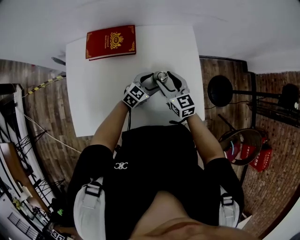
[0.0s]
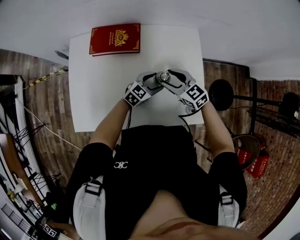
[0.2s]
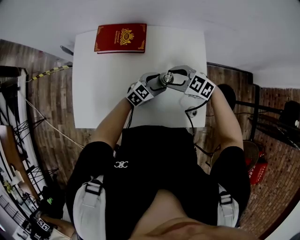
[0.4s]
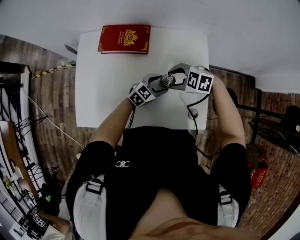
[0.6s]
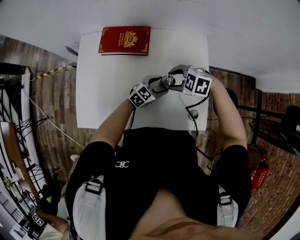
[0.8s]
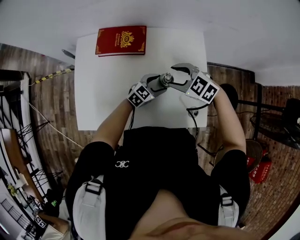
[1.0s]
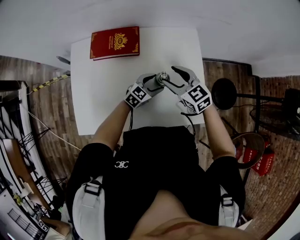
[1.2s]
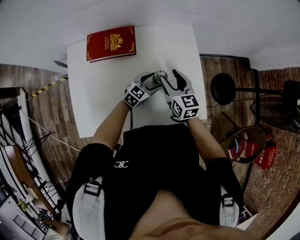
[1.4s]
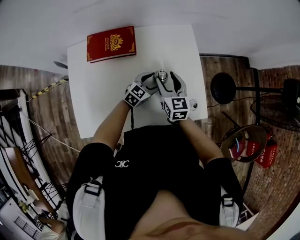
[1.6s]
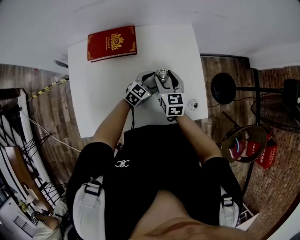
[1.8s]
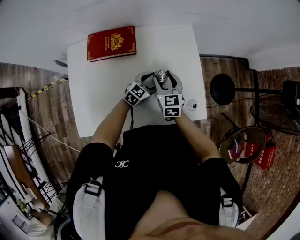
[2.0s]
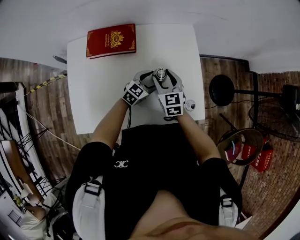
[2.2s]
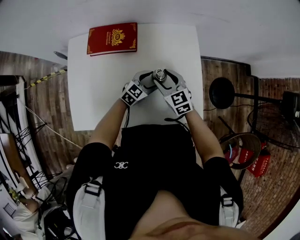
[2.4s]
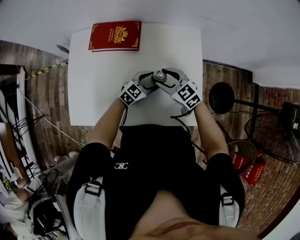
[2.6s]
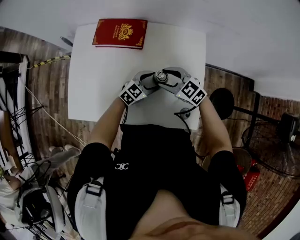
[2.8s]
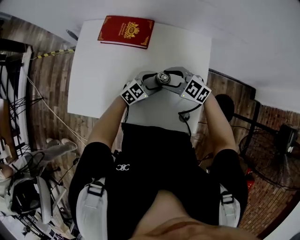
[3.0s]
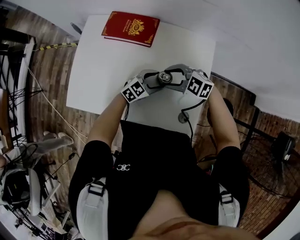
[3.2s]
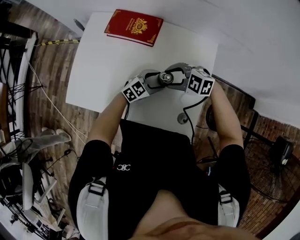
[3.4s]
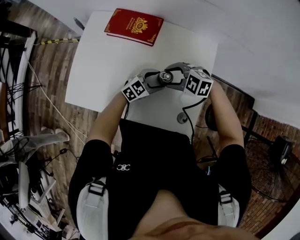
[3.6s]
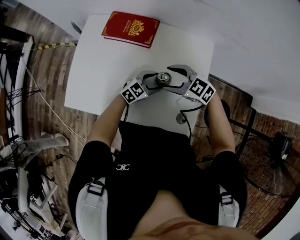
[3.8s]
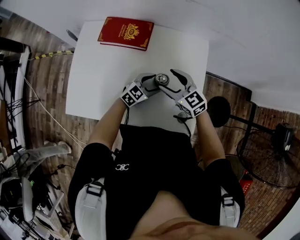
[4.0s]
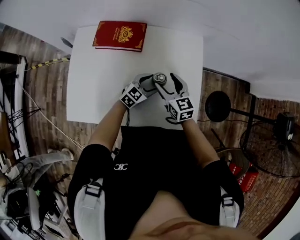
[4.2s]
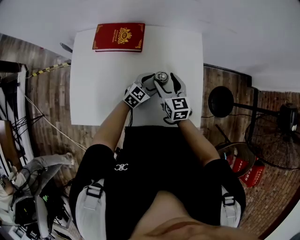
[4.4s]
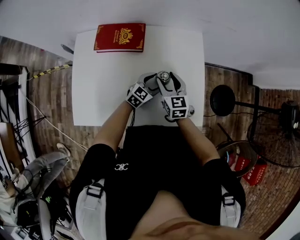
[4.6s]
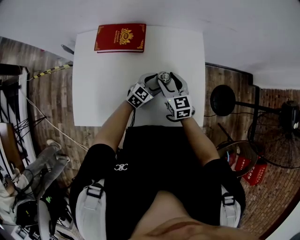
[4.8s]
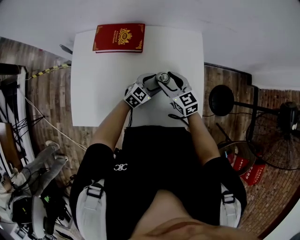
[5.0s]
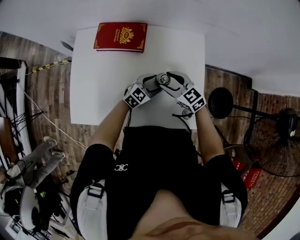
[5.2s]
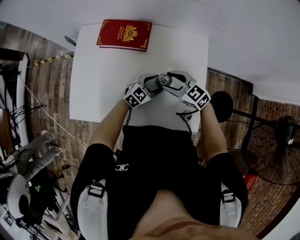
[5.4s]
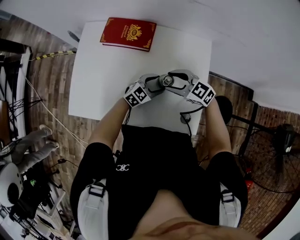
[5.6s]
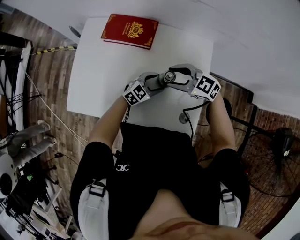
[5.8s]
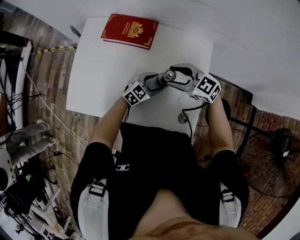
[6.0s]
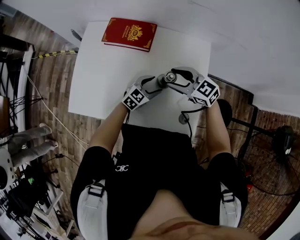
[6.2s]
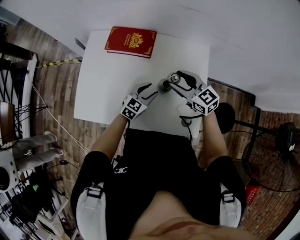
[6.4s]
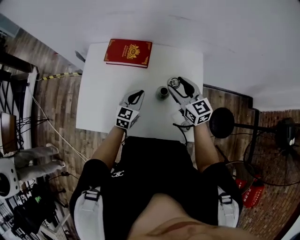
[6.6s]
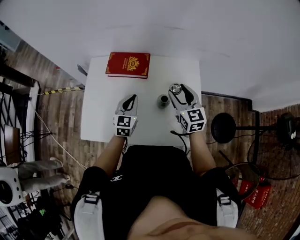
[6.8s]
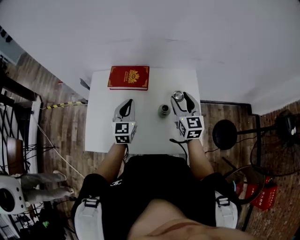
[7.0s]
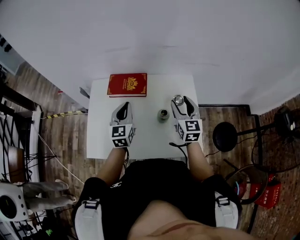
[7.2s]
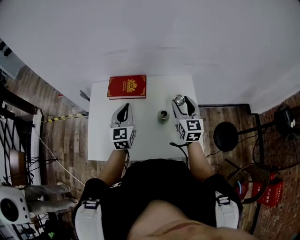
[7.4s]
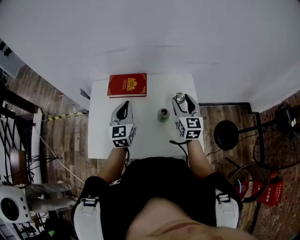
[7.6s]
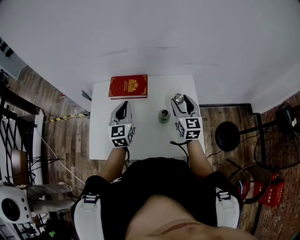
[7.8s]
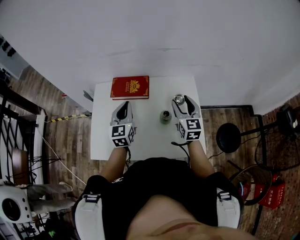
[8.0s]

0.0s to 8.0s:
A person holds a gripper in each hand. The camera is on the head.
1.6s to 3.2s: The right gripper turns by some 90 degrees.
3.2s to 4.8s: The right gripper swivels about 70 degrees.
4.8s to 6.4s: The left gripper moves about 5 cm. Meanwhile the right gripper travels upward by some 10 cm, and rotates approximately 30 degrees.
6.4s to 8.0s: The right gripper moves upward, approximately 10 cm, and changes its angle by about 50 degrees, while the left gripper moves upward and to the left, approximately 25 cm, swivels roughly 40 degrees, and closes.

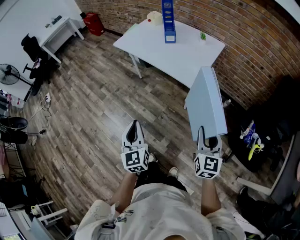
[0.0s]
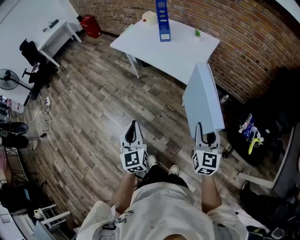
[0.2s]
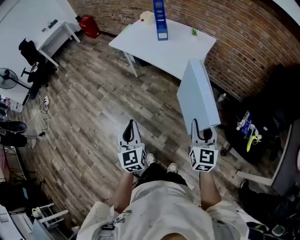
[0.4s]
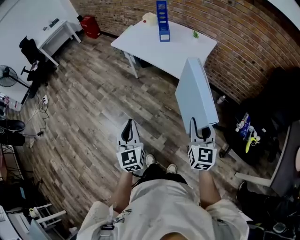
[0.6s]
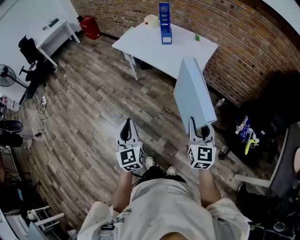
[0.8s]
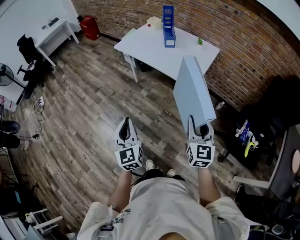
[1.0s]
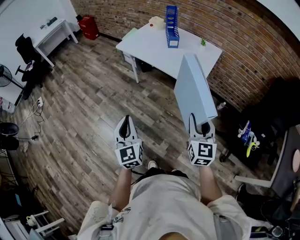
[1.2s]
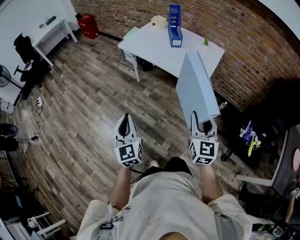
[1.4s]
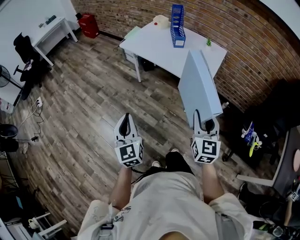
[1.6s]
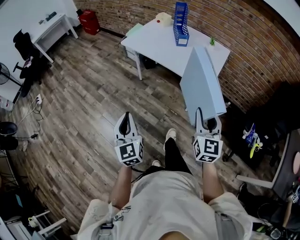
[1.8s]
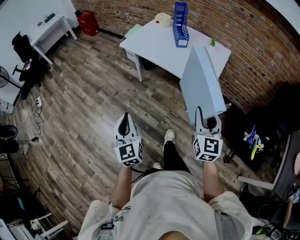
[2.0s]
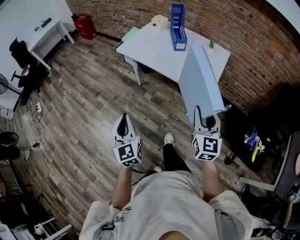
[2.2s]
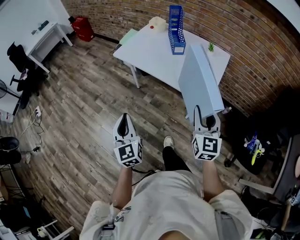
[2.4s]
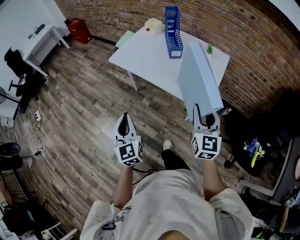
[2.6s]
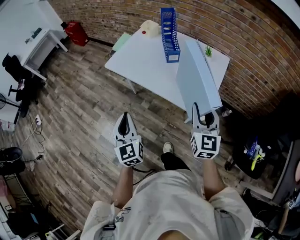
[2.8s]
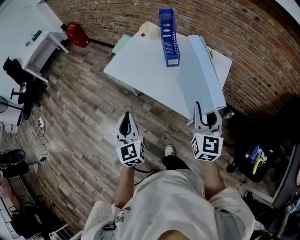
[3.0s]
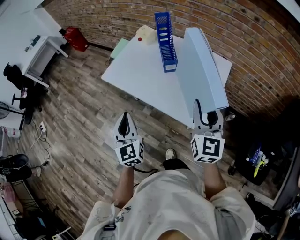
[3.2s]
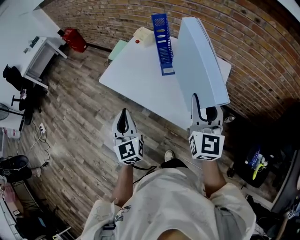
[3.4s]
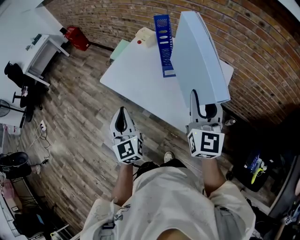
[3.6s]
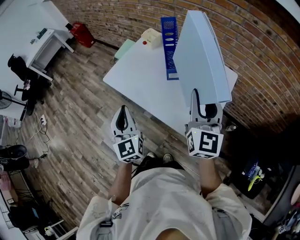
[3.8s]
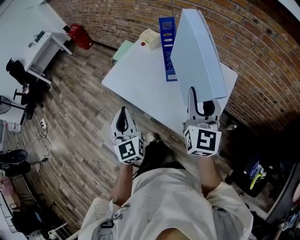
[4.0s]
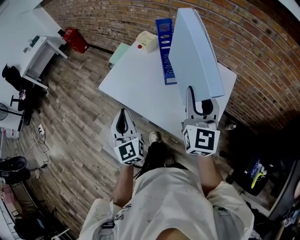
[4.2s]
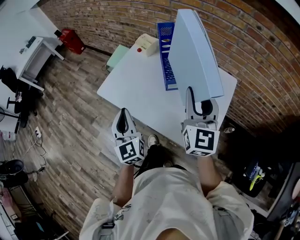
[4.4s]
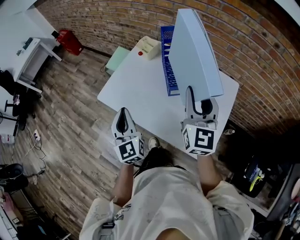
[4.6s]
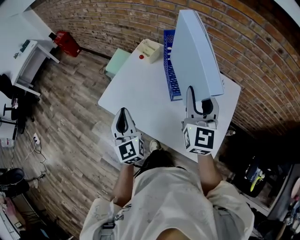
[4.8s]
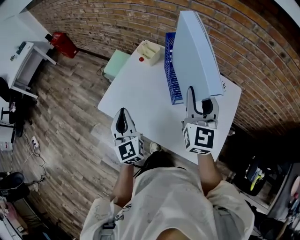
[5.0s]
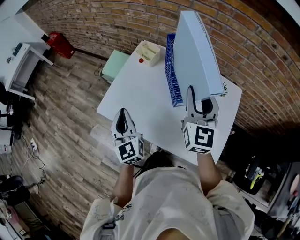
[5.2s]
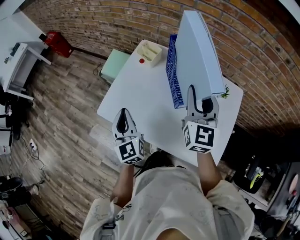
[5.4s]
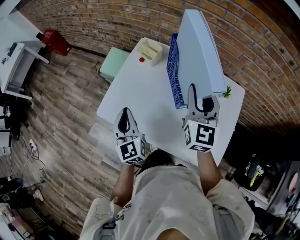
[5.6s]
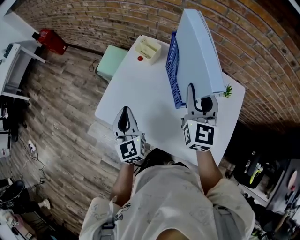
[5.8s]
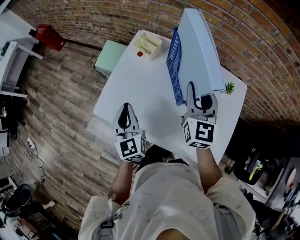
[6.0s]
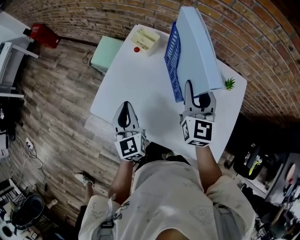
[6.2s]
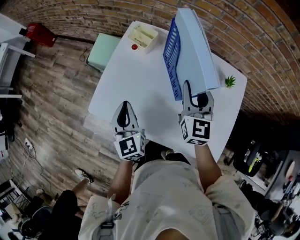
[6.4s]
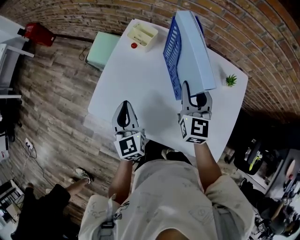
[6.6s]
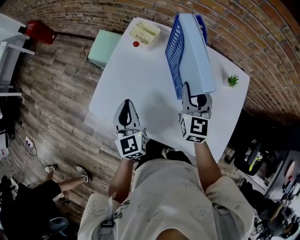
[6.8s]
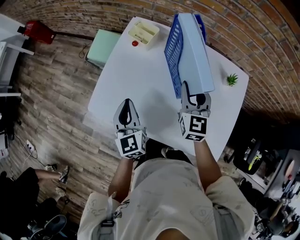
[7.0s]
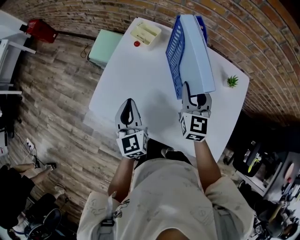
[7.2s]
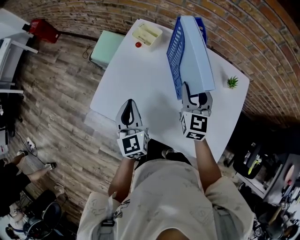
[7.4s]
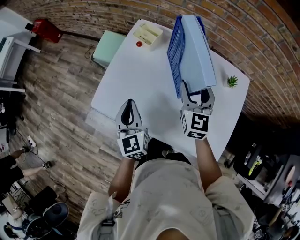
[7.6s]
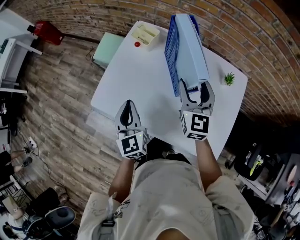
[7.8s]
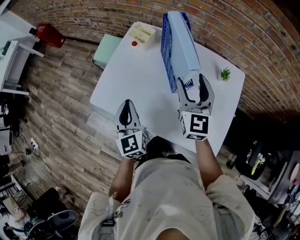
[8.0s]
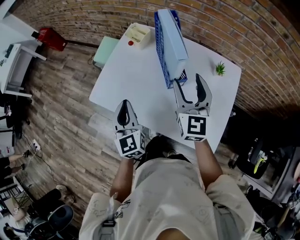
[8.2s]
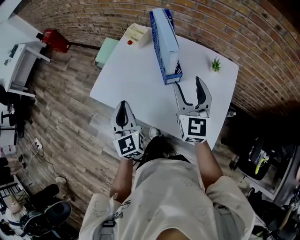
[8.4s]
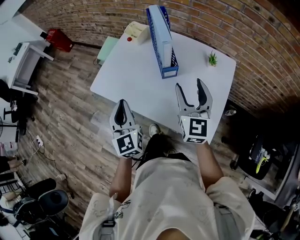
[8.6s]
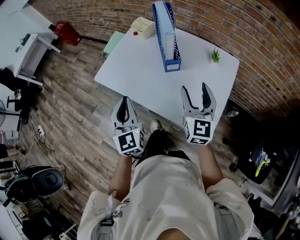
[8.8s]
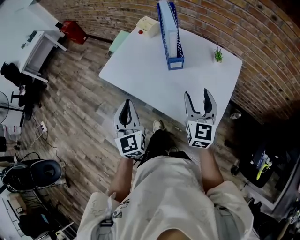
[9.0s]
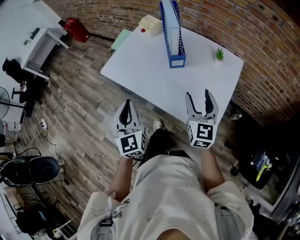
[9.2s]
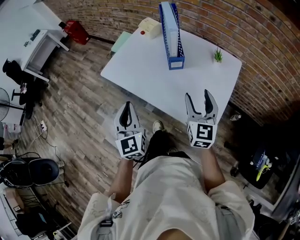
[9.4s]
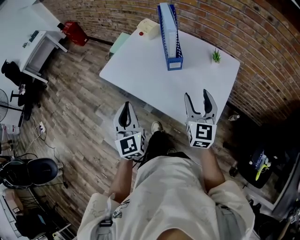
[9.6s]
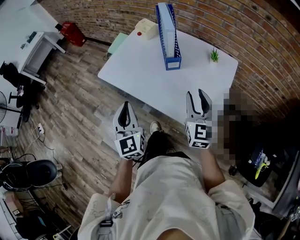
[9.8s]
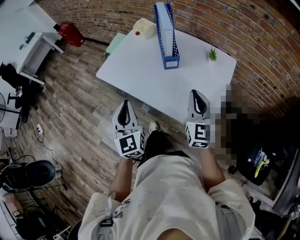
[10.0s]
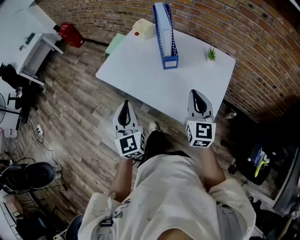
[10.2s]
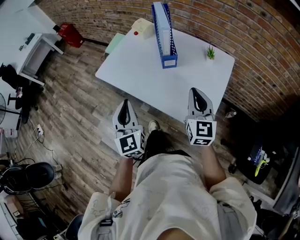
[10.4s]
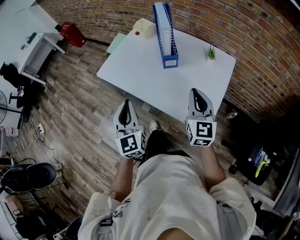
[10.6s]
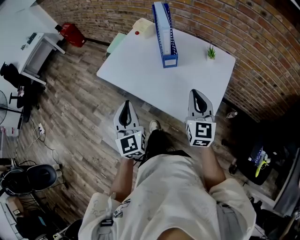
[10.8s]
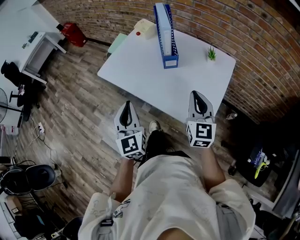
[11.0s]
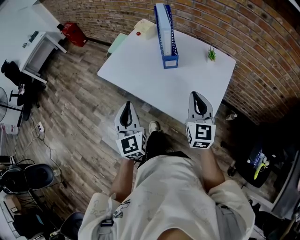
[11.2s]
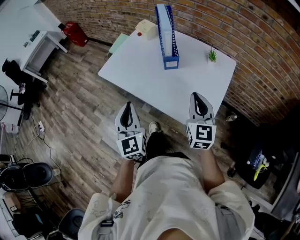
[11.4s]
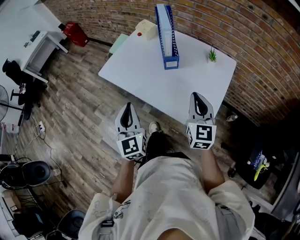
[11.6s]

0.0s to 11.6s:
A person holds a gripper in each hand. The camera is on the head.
0.0s to 1.4s: The left gripper goes some 15 cm to the left; the right gripper moves to the left and forward, approximately 15 cm.
1.4s to 2.8s: The two grippers go some 25 cm forward.
2.8s to 4.4s: Both grippers travel together forward, roughly 20 cm.
4.4s to 5.8s: Both grippers travel together forward, some 15 cm.
5.8s to 7.2s: The right gripper shifts approximately 10 cm downward.
7.2s to 8.8s: The right gripper goes approximately 20 cm backward, and opens. Meanwhile the left gripper is displaced backward and upward by roughly 20 cm.
8.8s to 10.2s: Both grippers move backward, approximately 5 cm. The right gripper closes its fingers.
10.2s to 11.6s: The grippers move only a little.

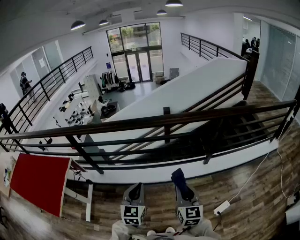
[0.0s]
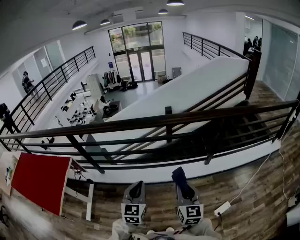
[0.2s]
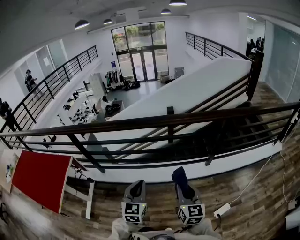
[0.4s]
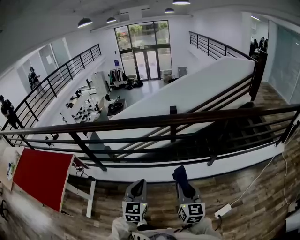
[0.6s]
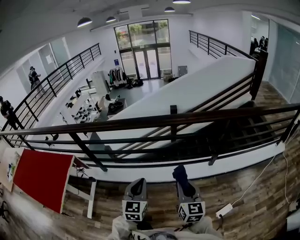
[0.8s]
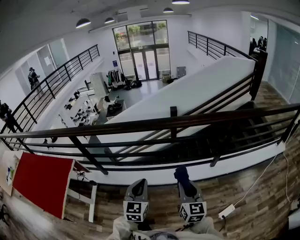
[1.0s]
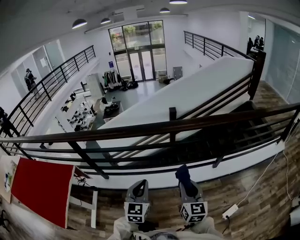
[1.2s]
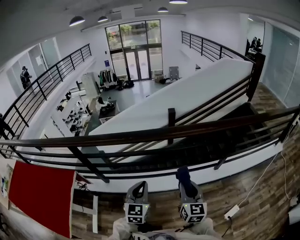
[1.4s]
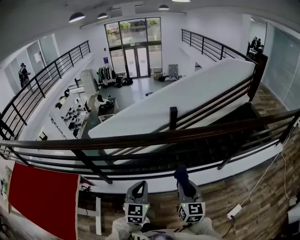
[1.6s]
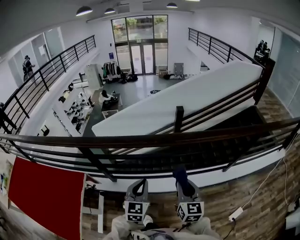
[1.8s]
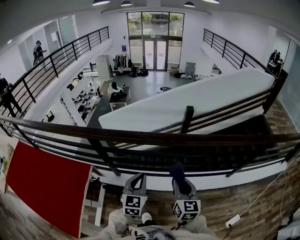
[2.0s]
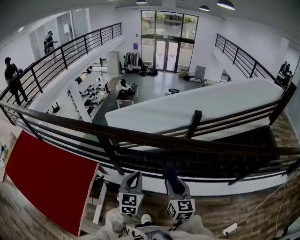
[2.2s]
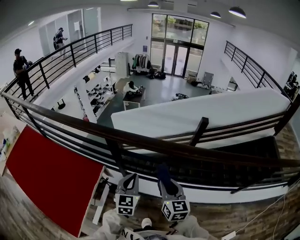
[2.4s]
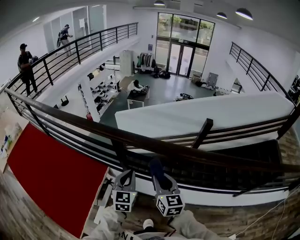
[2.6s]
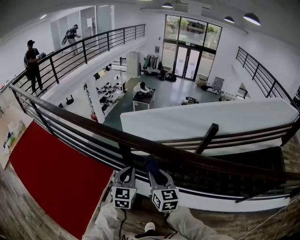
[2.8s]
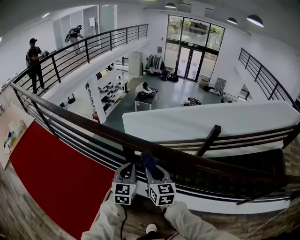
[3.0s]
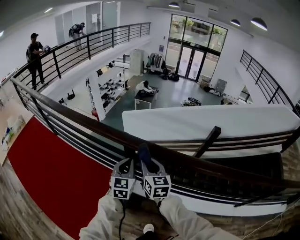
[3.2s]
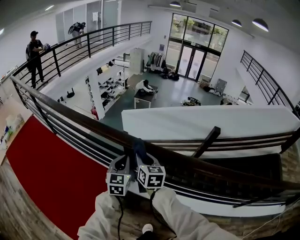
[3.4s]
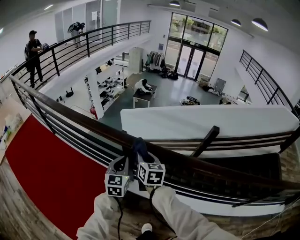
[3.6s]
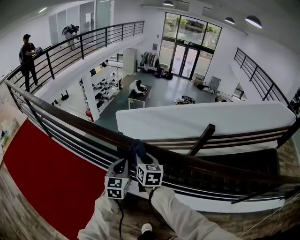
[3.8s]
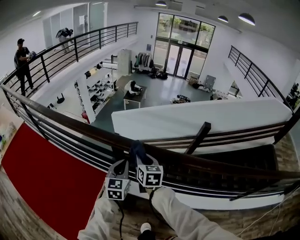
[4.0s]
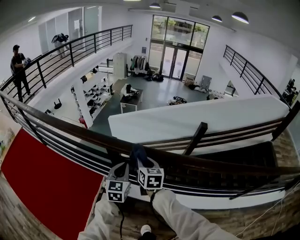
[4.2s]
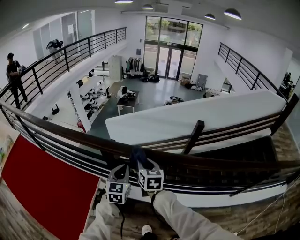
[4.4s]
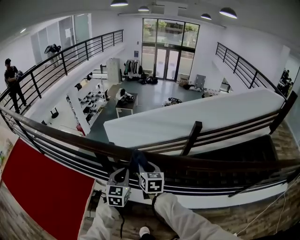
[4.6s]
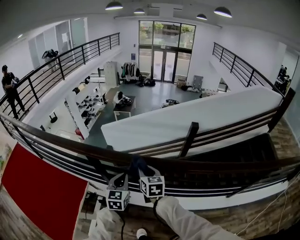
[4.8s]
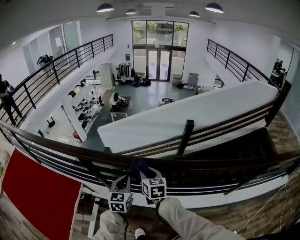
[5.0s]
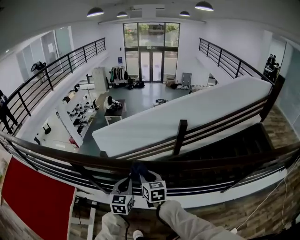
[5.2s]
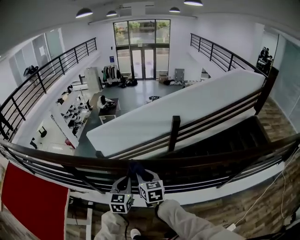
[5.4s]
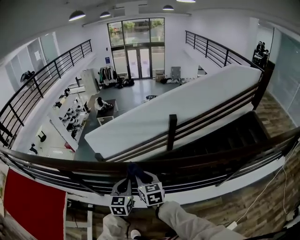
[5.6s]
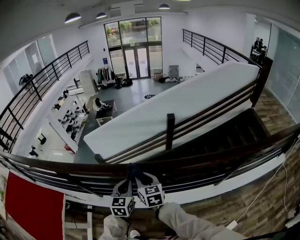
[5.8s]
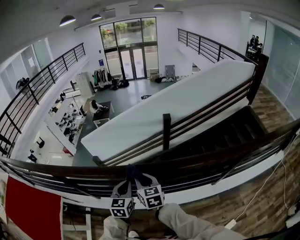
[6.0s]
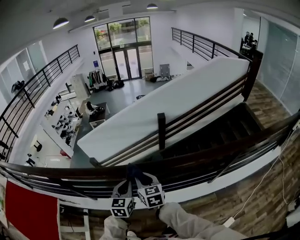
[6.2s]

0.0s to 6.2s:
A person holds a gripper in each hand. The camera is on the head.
0.0s to 1.6s: Both grippers move to the left and forward, about 25 cm.
1.6s to 3.2s: Both grippers are carried roughly 50 cm. The left gripper swivels some 30 degrees. Meanwhile the right gripper swivels about 40 degrees.
3.2s to 4.6s: Both grippers move to the right, approximately 15 cm.
4.6s to 6.2s: Both grippers move to the right, about 40 cm.
